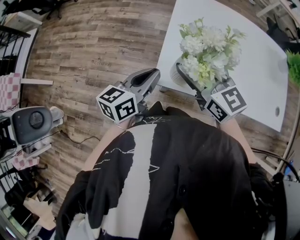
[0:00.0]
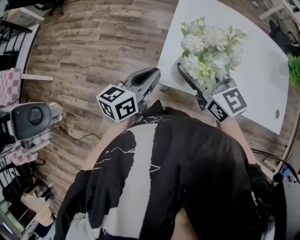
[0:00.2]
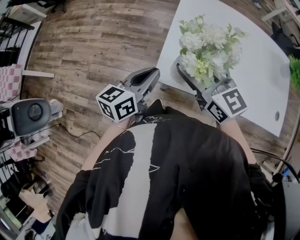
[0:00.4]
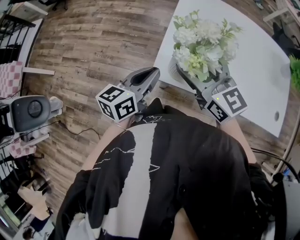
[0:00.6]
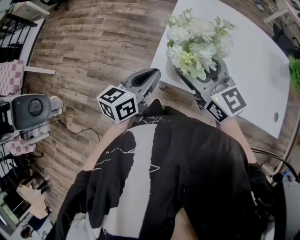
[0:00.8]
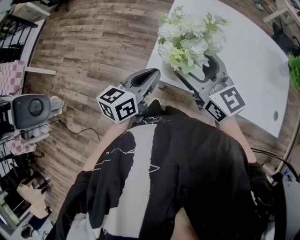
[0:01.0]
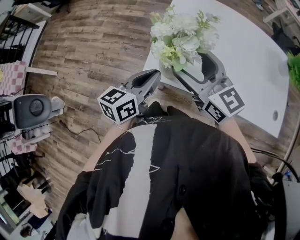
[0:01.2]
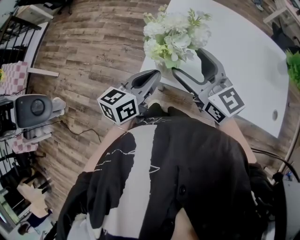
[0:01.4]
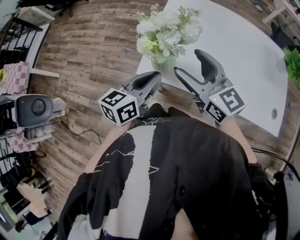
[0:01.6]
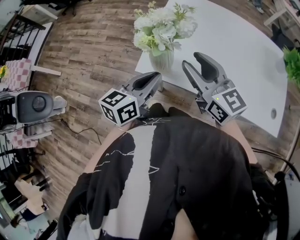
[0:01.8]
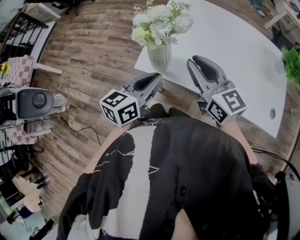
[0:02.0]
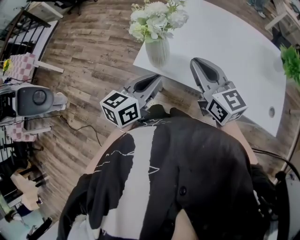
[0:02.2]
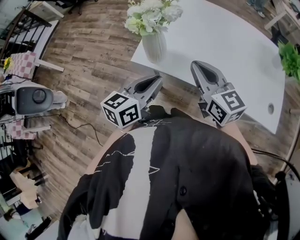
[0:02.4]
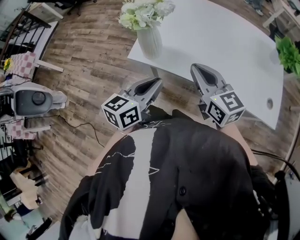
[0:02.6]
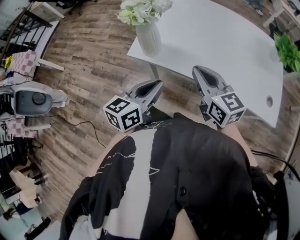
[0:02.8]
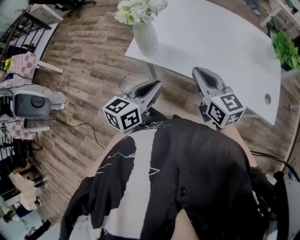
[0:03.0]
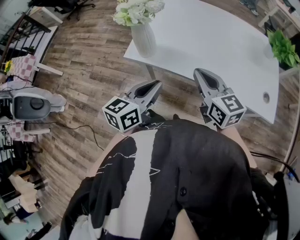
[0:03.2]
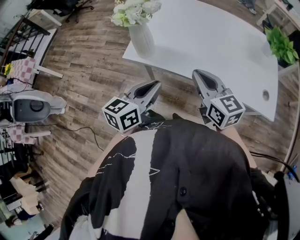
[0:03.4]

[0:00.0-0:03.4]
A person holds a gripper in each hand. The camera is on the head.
0:00.0 to 0:01.6: The grippers both shift to the right and backward by about 10 cm.
0:01.6 to 0:03.4: The grippers both shift backward and to the right by roughly 20 cm. The right gripper closes.

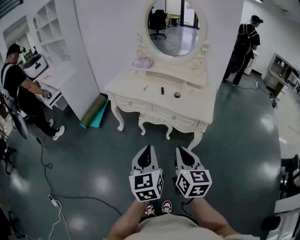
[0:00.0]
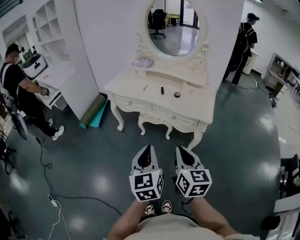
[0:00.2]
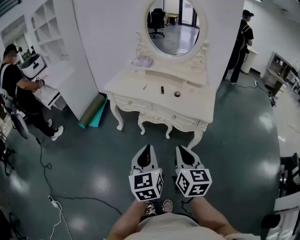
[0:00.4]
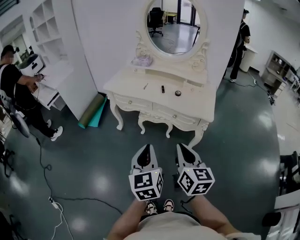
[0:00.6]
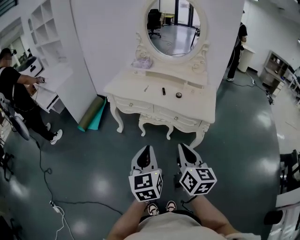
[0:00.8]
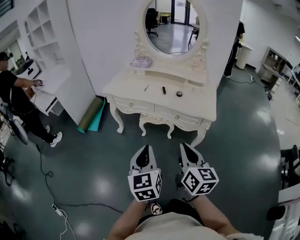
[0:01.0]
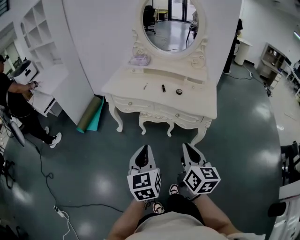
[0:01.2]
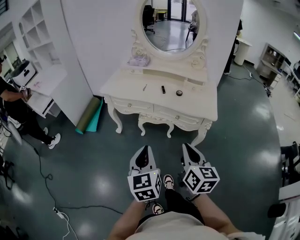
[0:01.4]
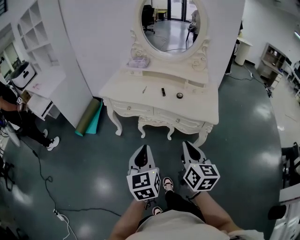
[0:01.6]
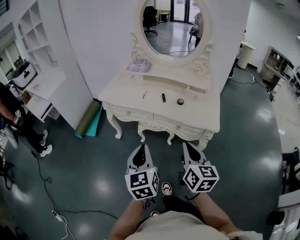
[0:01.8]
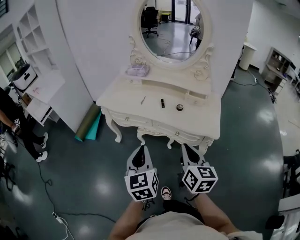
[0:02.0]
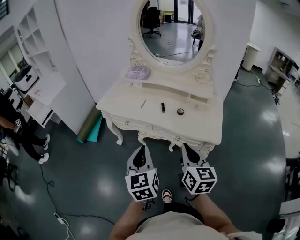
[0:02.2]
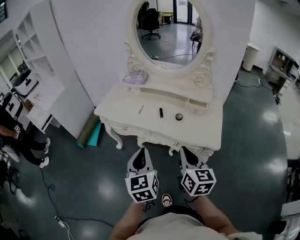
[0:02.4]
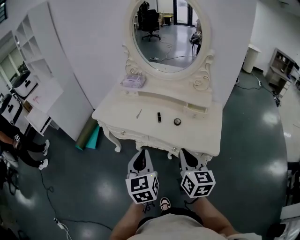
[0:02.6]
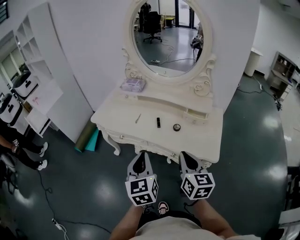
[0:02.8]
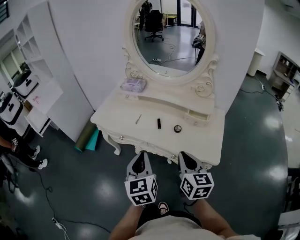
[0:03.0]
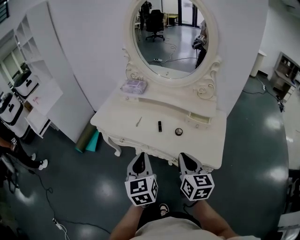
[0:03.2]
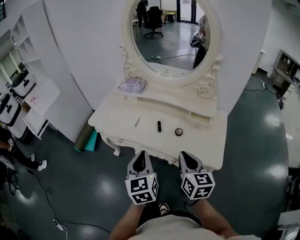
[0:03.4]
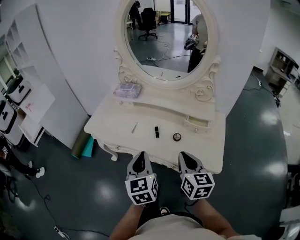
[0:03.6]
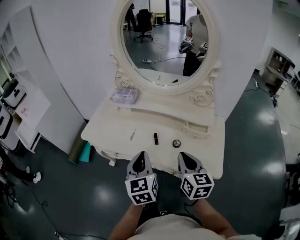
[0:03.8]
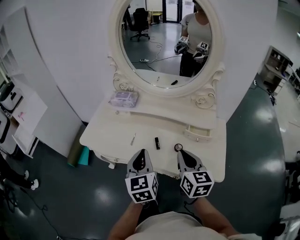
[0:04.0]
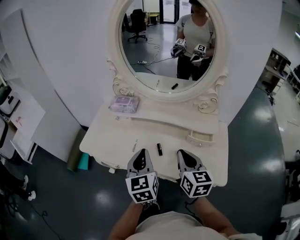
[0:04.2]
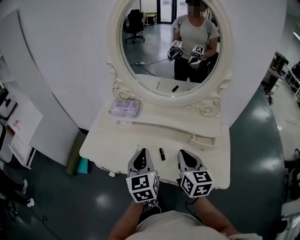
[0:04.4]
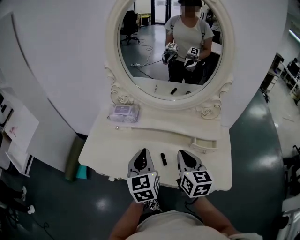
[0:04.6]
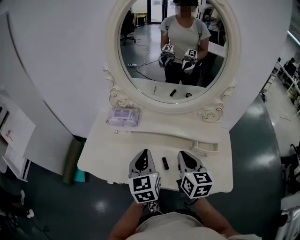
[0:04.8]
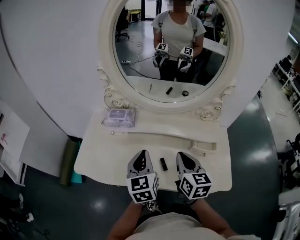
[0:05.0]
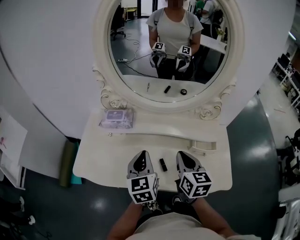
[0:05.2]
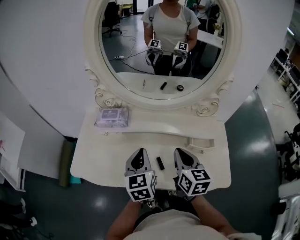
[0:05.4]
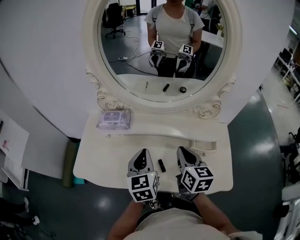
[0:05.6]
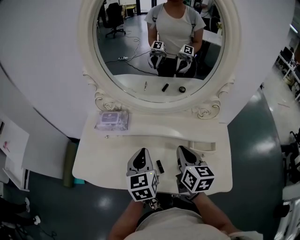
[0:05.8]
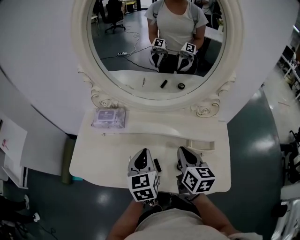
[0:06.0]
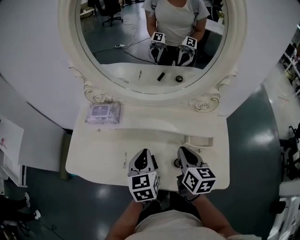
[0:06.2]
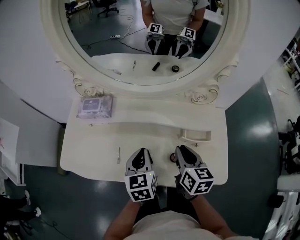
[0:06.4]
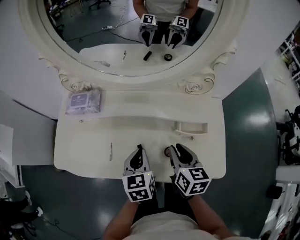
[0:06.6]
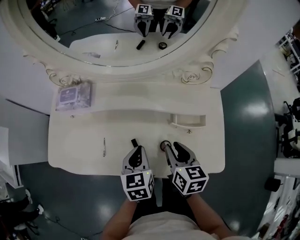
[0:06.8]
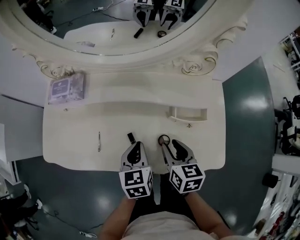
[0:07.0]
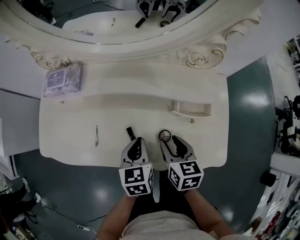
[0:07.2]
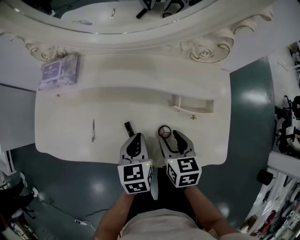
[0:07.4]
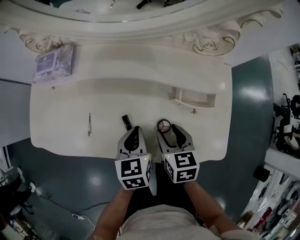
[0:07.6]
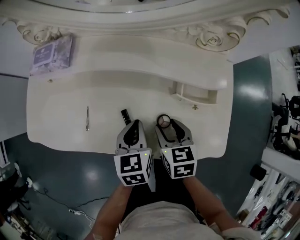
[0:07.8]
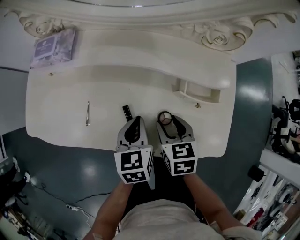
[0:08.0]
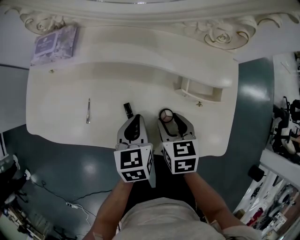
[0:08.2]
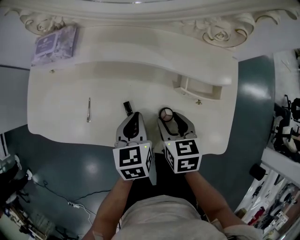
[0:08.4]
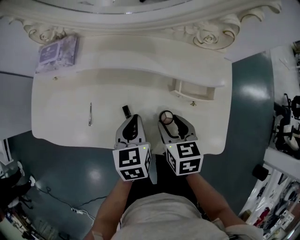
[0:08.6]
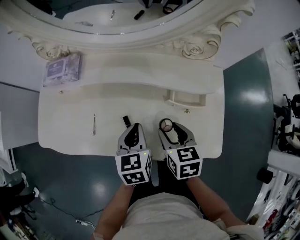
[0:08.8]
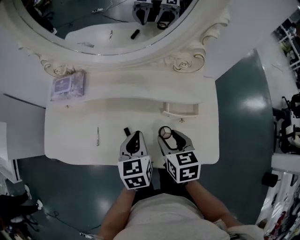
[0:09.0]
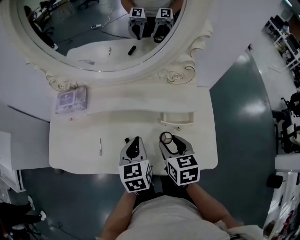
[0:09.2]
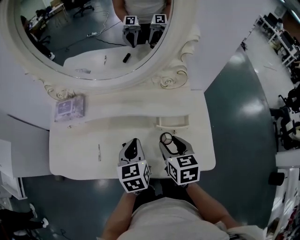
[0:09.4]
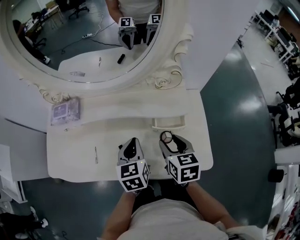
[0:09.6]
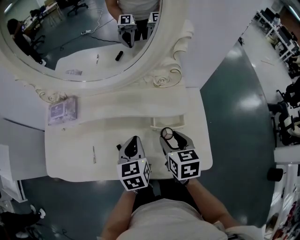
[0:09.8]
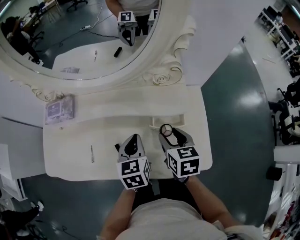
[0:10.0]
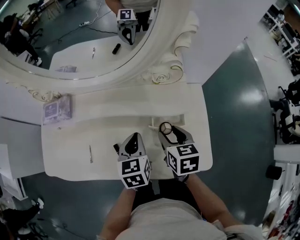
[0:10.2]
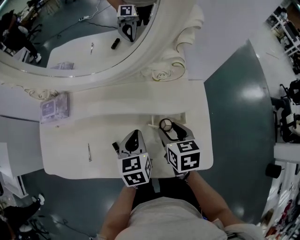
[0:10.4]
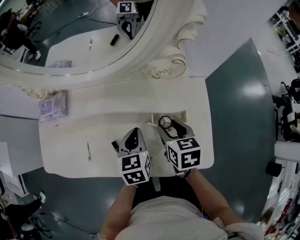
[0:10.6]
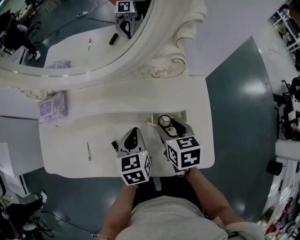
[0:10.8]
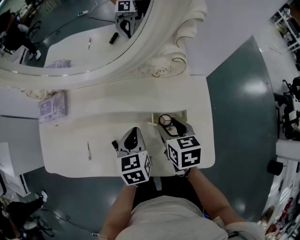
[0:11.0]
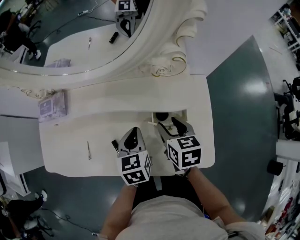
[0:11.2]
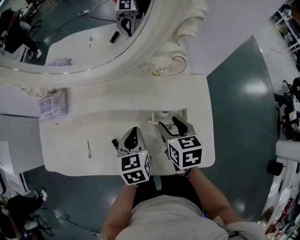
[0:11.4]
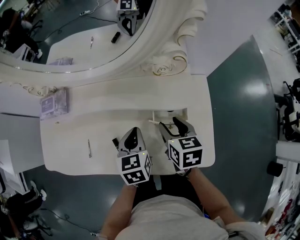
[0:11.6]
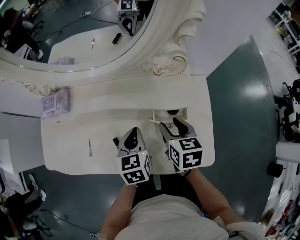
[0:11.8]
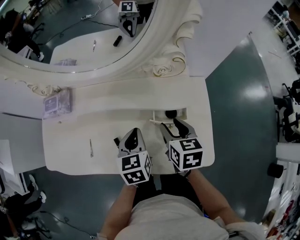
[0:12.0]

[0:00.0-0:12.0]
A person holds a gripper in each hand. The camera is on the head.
0:00.0 to 0:01.6: The right gripper shifts approximately 10 cm forward, while the left gripper shifts about 10 cm forward and to the left.
0:01.6 to 0:03.0: The two grippers go about 25 cm forward and to the right.
0:03.0 to 0:04.4: The grippers both shift forward by approximately 25 cm.
0:04.4 to 0:06.0: The two grippers go about 10 cm forward.
0:06.0 to 0:07.6: The left gripper is displaced downward and to the right by some 20 cm, and rotates roughly 20 degrees. Meanwhile the right gripper shifts roughly 20 cm downward, swivels about 30 degrees, and opens.
0:07.6 to 0:09.0: The grippers both shift upward by about 5 cm.
0:09.0 to 0:10.4: The grippers both shift to the right and forward by roughly 10 cm.
0:10.4 to 0:12.0: The grippers stay close to where they were, moving slightly.

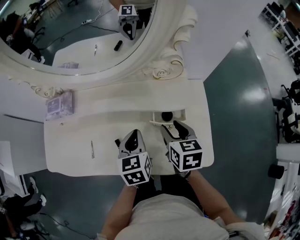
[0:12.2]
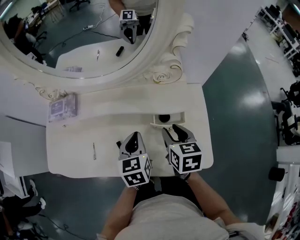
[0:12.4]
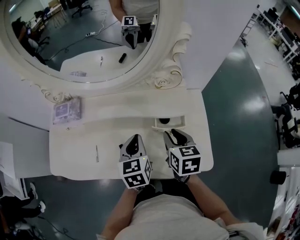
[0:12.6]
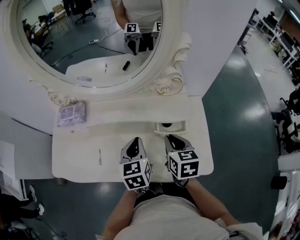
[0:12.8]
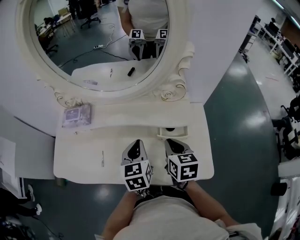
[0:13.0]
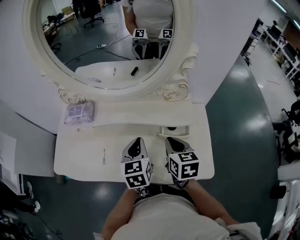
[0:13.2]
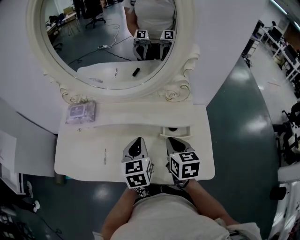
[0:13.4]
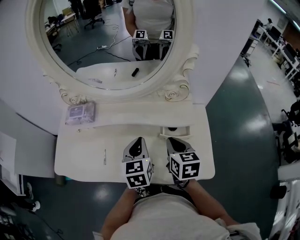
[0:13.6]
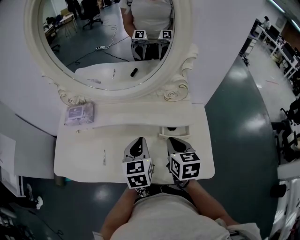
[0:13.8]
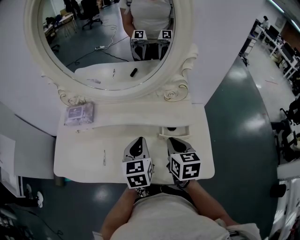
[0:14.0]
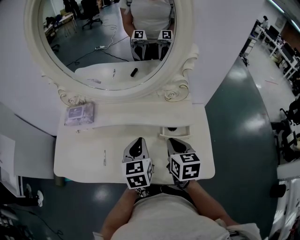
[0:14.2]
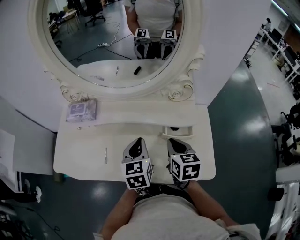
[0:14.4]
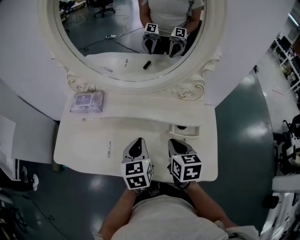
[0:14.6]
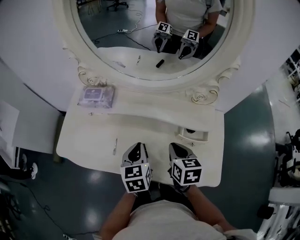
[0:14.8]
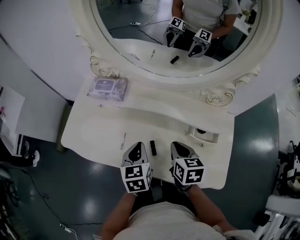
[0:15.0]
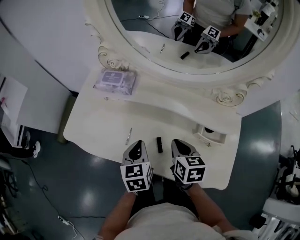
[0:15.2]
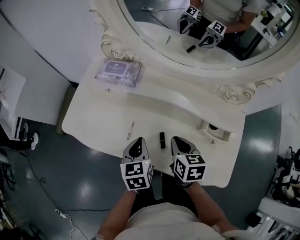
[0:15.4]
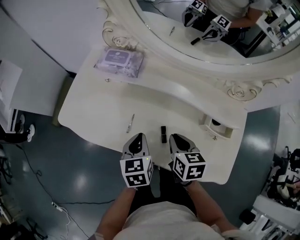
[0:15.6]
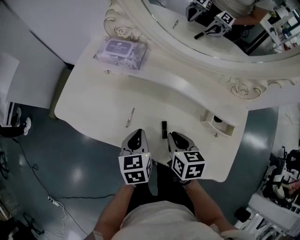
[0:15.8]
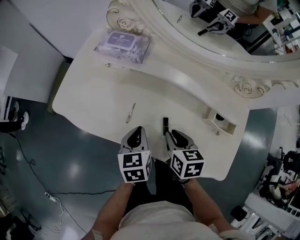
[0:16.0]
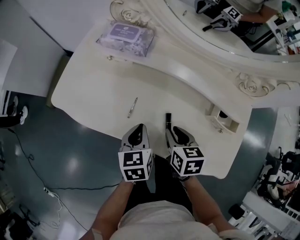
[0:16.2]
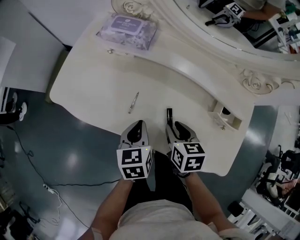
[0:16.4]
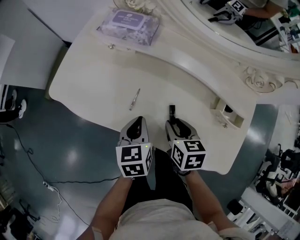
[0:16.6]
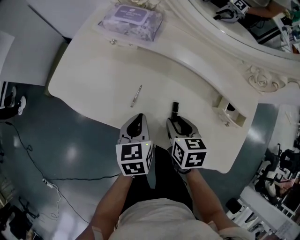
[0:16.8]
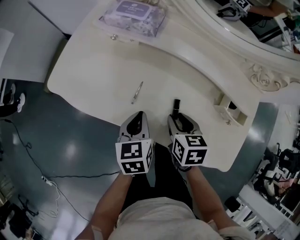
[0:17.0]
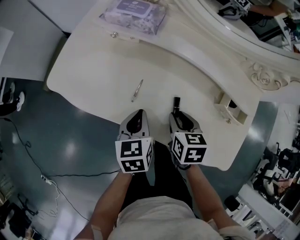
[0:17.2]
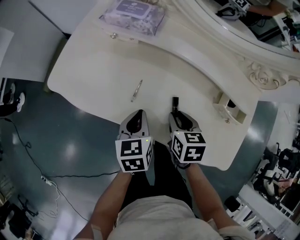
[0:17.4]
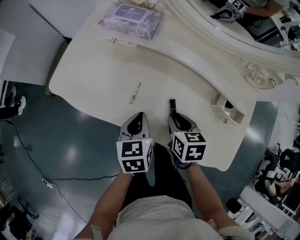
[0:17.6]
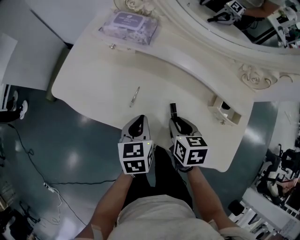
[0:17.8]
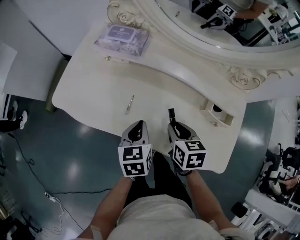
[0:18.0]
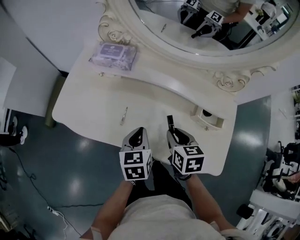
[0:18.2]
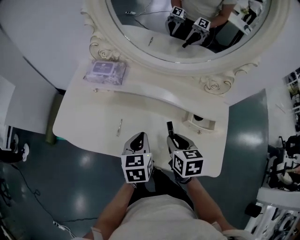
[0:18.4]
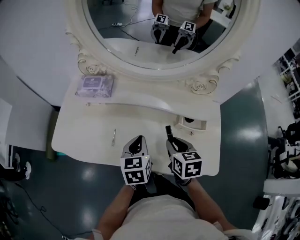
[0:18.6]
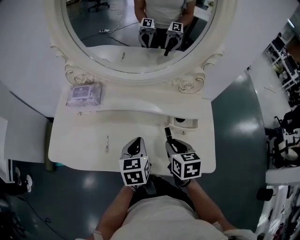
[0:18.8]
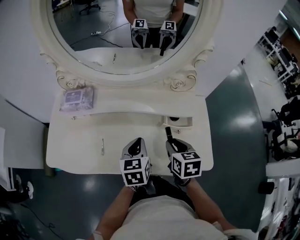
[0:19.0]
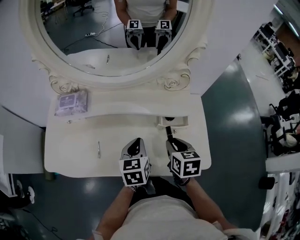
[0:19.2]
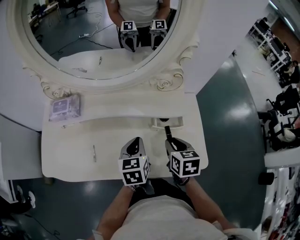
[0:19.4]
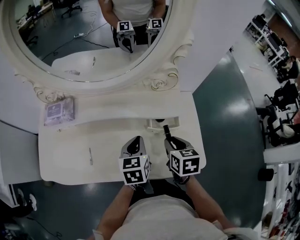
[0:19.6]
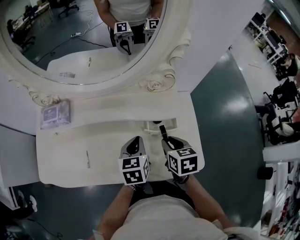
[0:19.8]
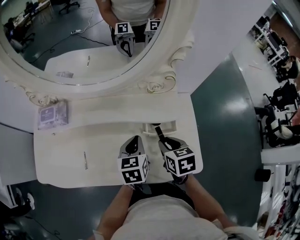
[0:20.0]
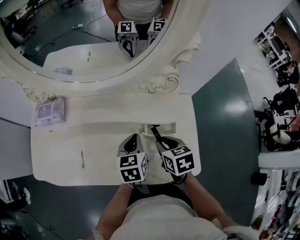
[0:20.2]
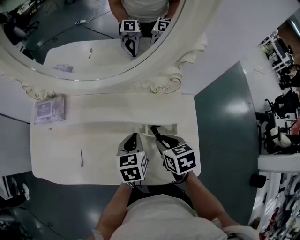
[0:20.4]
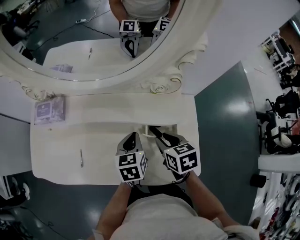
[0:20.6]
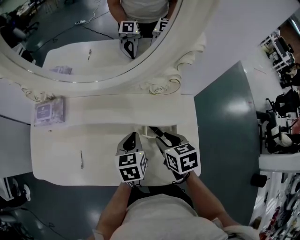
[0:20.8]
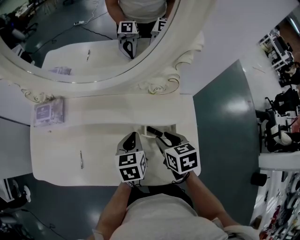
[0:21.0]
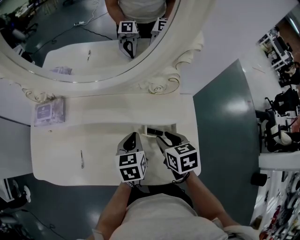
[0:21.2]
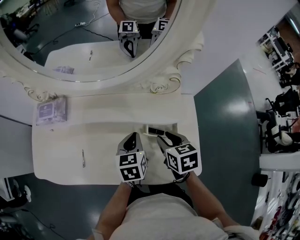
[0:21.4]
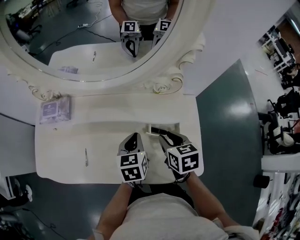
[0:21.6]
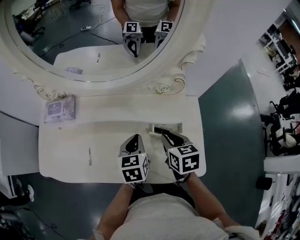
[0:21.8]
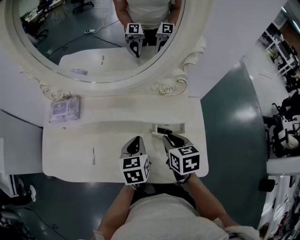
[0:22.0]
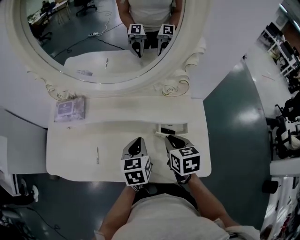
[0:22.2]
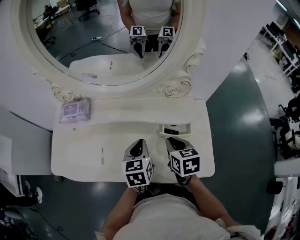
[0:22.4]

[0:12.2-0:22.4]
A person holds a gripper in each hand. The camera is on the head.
0:12.2 to 0:13.6: The two grippers go roughly 5 cm upward. The right gripper closes.
0:13.6 to 0:15.2: Both grippers travel together to the left and downward, some 15 cm. The left gripper rotates about 20 degrees.
0:15.2 to 0:16.6: The left gripper travels downward by some 5 cm. Meanwhile the right gripper travels downward and to the left by some 10 cm, and opens.
0:16.6 to 0:18.0: There are only small adjustments of the grippers.
0:18.0 to 0:19.4: The left gripper ends up approximately 20 cm from where it was, and rotates roughly 20 degrees; the right gripper changes place by about 20 cm, and swivels approximately 30 degrees.
0:19.4 to 0:21.0: The two grippers go roughly 5 cm forward.
0:21.0 to 0:22.4: The left gripper shifts roughly 5 cm to the left, while the right gripper changes place by about 5 cm, and closes up.
